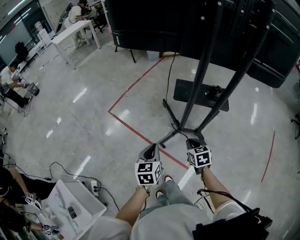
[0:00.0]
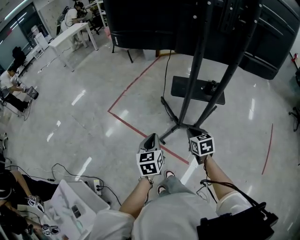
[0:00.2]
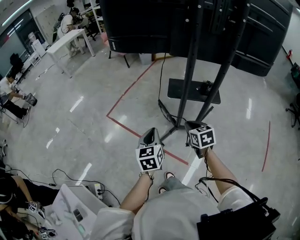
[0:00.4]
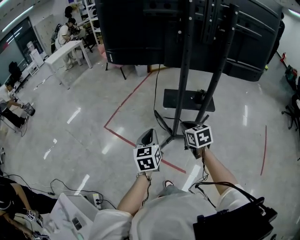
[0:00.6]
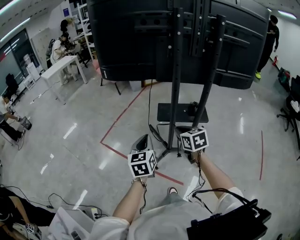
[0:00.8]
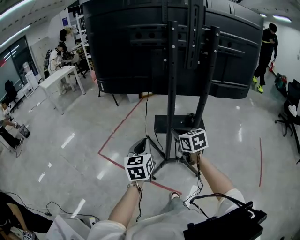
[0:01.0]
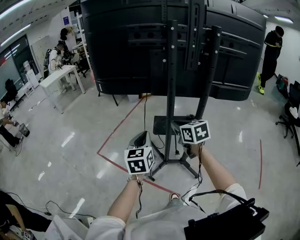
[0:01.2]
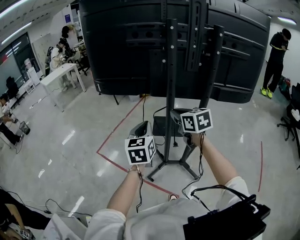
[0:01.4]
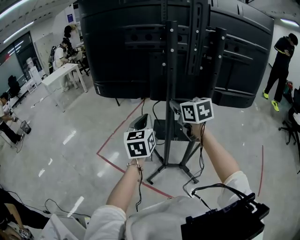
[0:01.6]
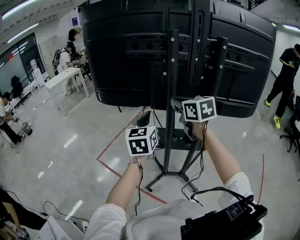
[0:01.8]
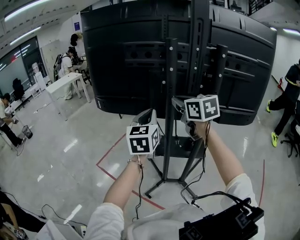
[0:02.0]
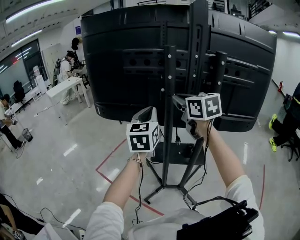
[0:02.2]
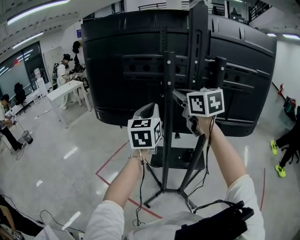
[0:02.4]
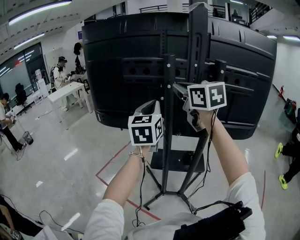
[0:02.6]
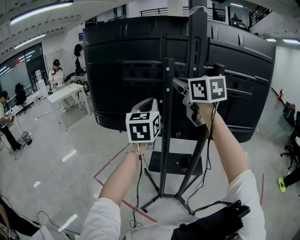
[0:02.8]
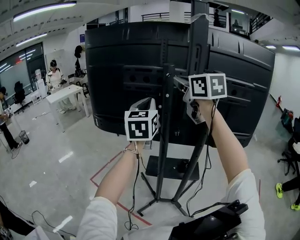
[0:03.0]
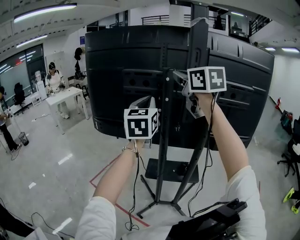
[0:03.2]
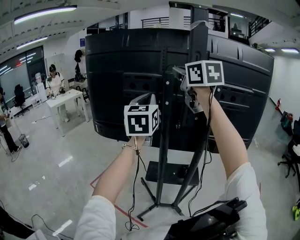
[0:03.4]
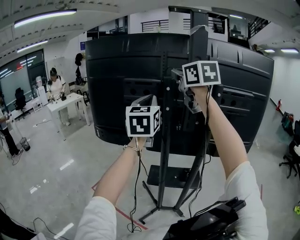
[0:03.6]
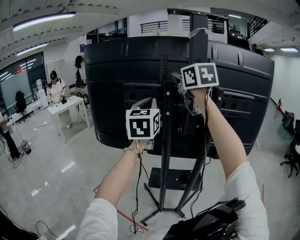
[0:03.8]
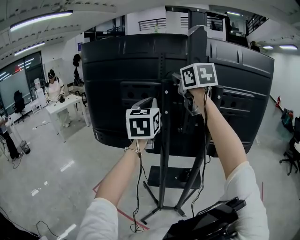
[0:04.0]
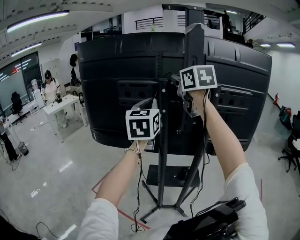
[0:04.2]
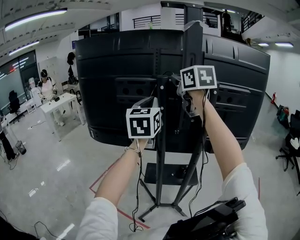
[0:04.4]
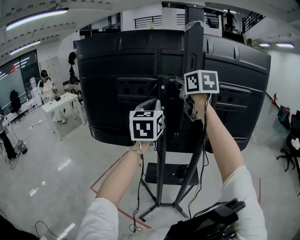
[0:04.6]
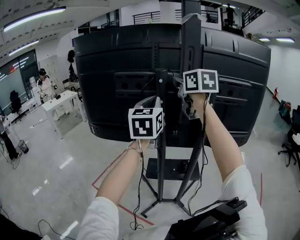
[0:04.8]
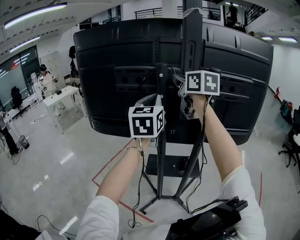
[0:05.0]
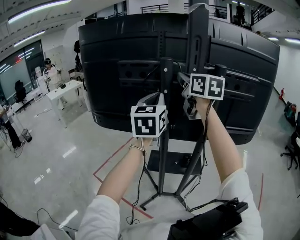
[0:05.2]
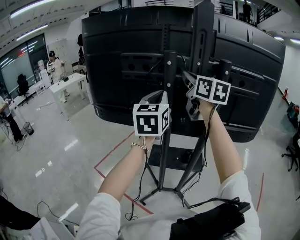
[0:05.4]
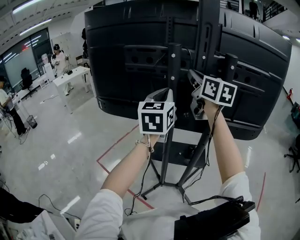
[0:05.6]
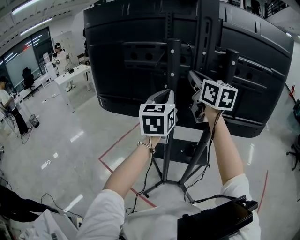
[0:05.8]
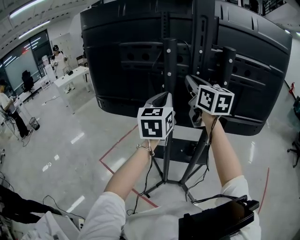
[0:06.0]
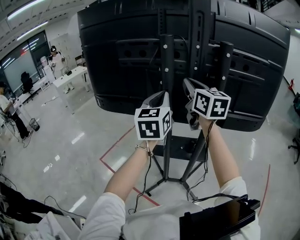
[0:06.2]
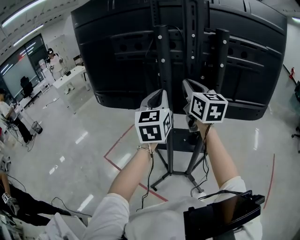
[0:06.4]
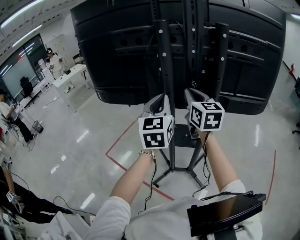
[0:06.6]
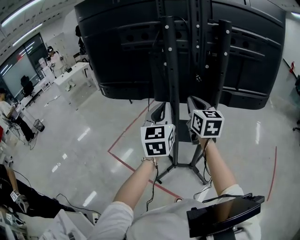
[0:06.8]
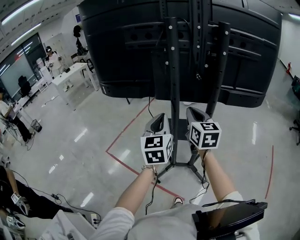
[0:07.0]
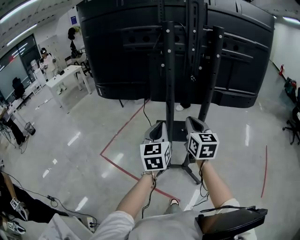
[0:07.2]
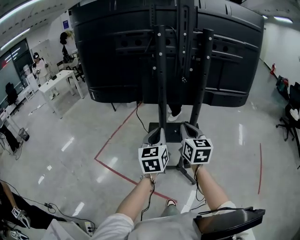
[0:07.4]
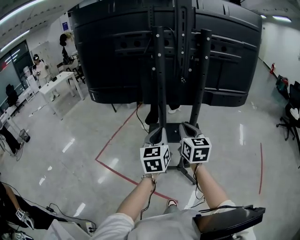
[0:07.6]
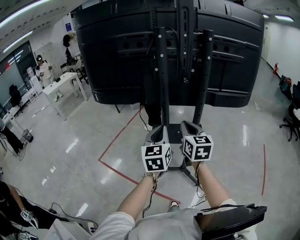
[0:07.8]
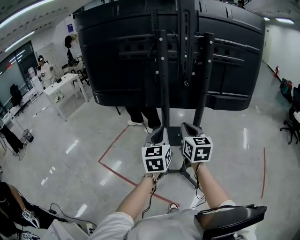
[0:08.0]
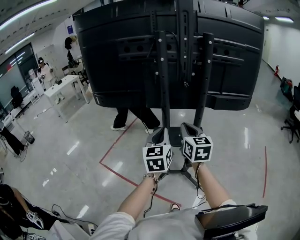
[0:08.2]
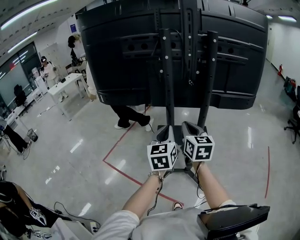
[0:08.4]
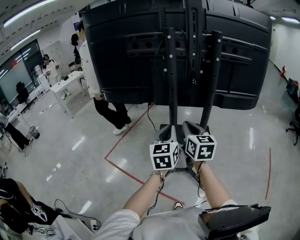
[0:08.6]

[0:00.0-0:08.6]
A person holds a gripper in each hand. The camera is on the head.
0.0 to 1.4 s: The right gripper goes some 35 cm upward and forward, and swivels roughly 20 degrees. Meanwhile the left gripper heads upward, forward and to the right, covering some 30 cm.
1.4 to 2.8 s: The left gripper is displaced upward and forward by approximately 25 cm; the right gripper travels upward by roughly 30 cm, and rotates some 20 degrees.
2.8 to 4.4 s: The left gripper moves upward, roughly 5 cm. The right gripper moves forward and upward, approximately 10 cm.
4.4 to 5.8 s: The grippers both shift downward by about 10 cm.
5.8 to 7.2 s: Both grippers move downward and backward, some 25 cm. The right gripper swivels some 20 degrees.
7.2 to 8.6 s: The grippers stay close to where they were, moving slightly.

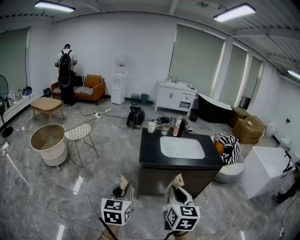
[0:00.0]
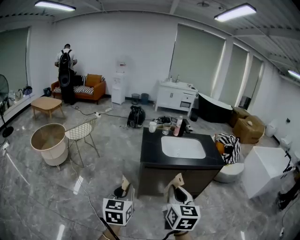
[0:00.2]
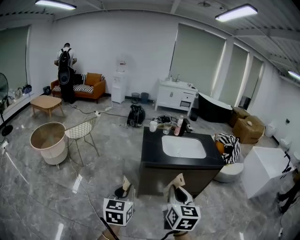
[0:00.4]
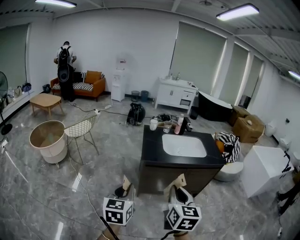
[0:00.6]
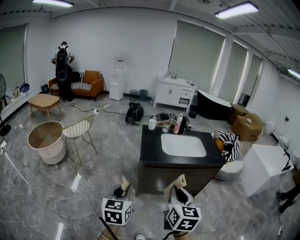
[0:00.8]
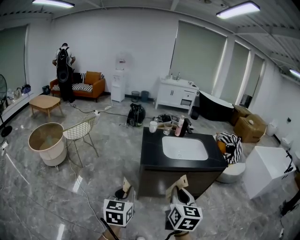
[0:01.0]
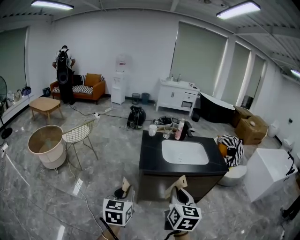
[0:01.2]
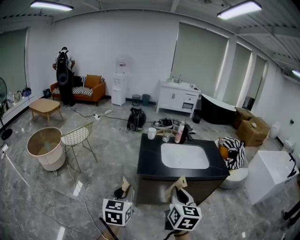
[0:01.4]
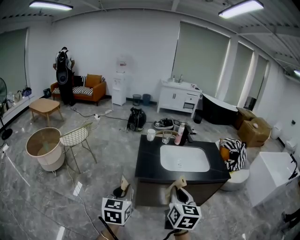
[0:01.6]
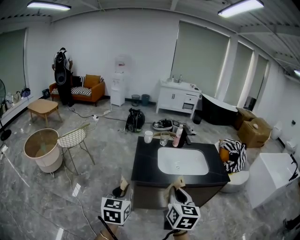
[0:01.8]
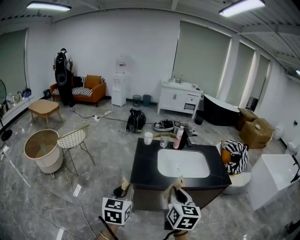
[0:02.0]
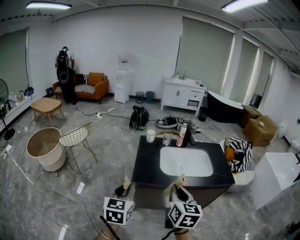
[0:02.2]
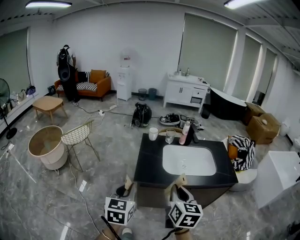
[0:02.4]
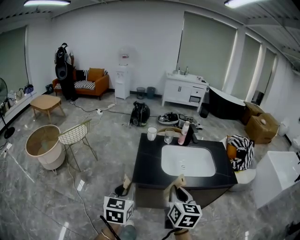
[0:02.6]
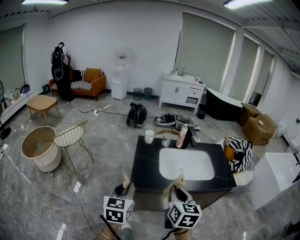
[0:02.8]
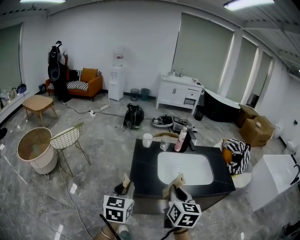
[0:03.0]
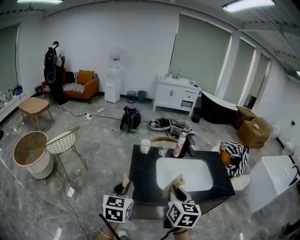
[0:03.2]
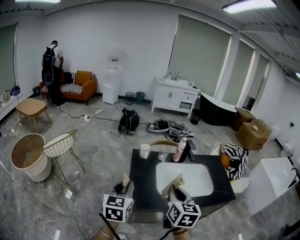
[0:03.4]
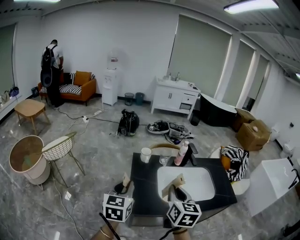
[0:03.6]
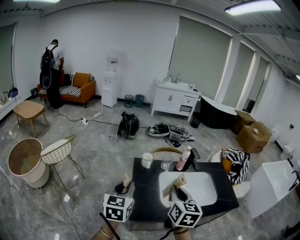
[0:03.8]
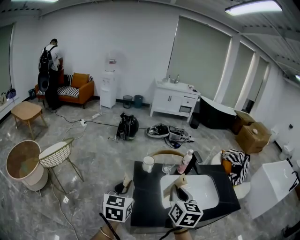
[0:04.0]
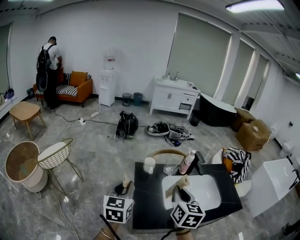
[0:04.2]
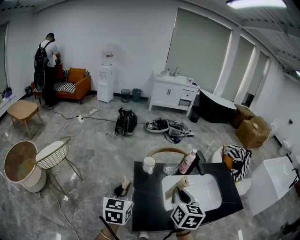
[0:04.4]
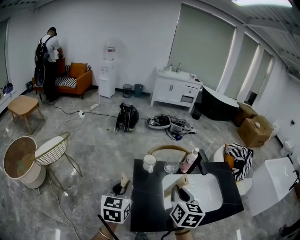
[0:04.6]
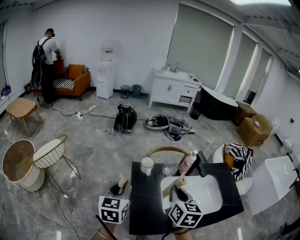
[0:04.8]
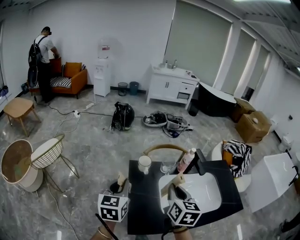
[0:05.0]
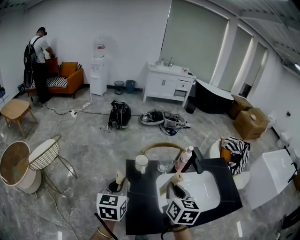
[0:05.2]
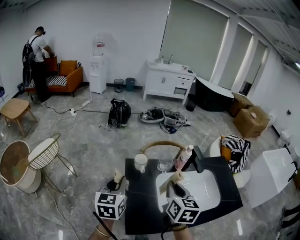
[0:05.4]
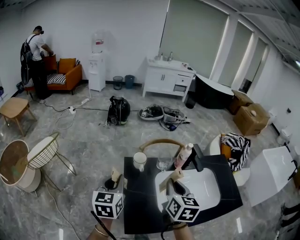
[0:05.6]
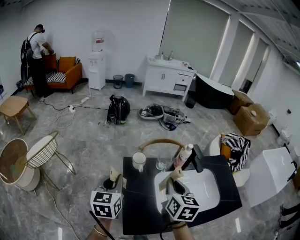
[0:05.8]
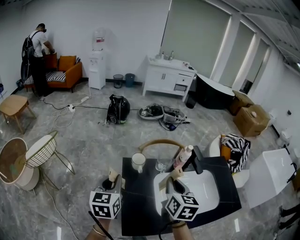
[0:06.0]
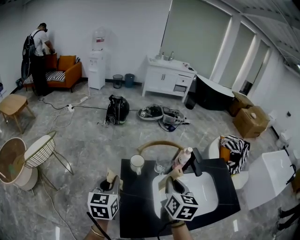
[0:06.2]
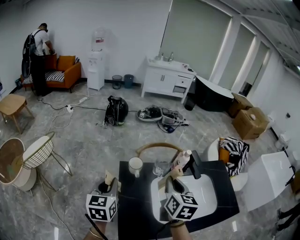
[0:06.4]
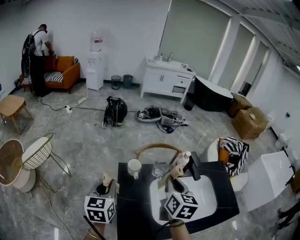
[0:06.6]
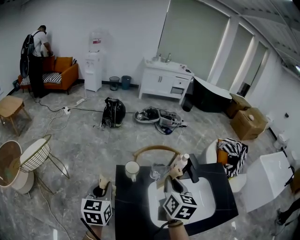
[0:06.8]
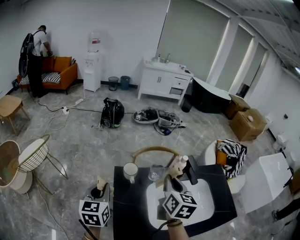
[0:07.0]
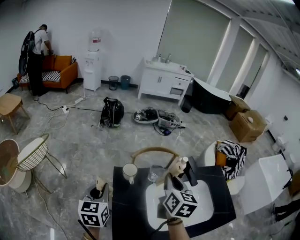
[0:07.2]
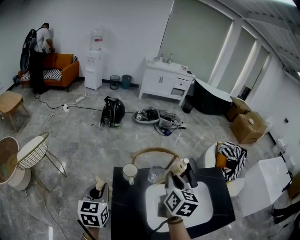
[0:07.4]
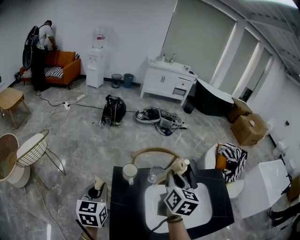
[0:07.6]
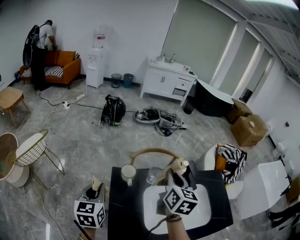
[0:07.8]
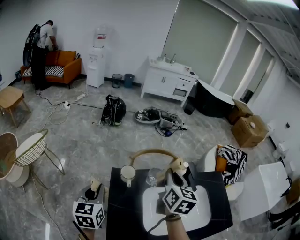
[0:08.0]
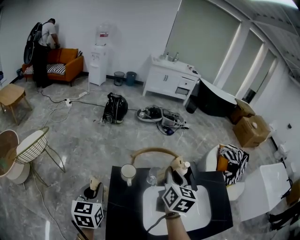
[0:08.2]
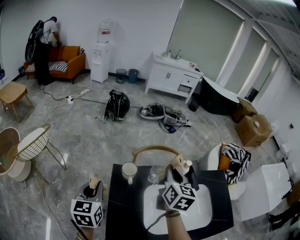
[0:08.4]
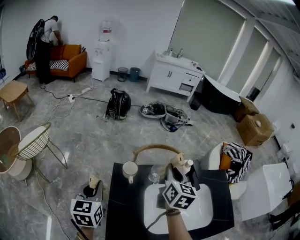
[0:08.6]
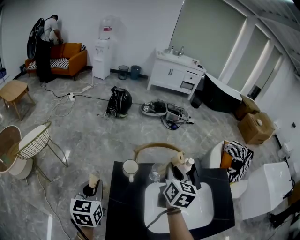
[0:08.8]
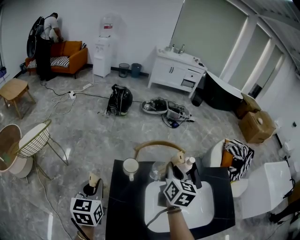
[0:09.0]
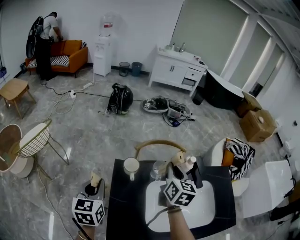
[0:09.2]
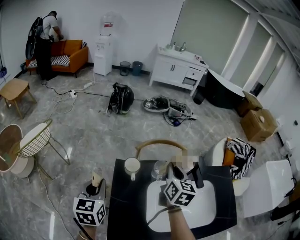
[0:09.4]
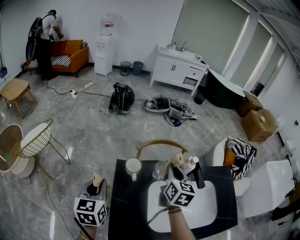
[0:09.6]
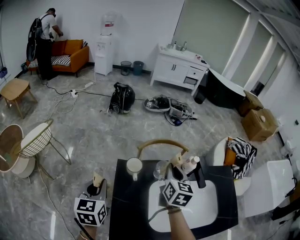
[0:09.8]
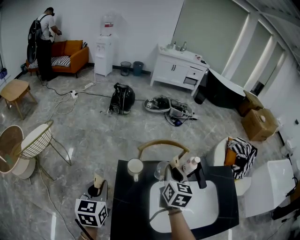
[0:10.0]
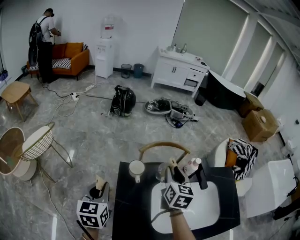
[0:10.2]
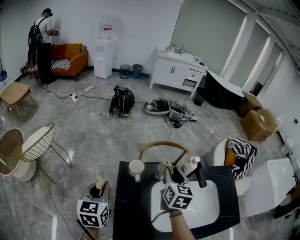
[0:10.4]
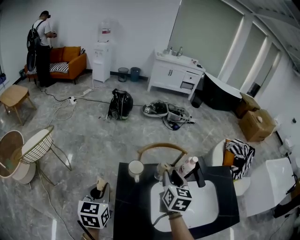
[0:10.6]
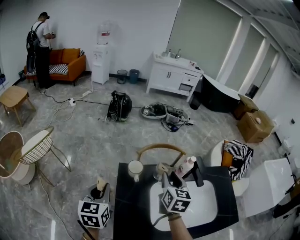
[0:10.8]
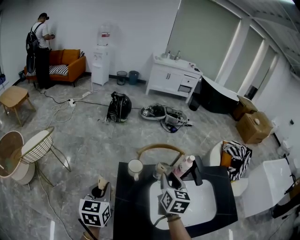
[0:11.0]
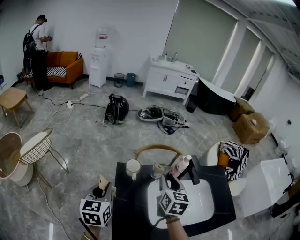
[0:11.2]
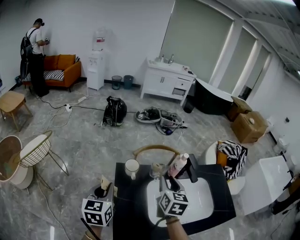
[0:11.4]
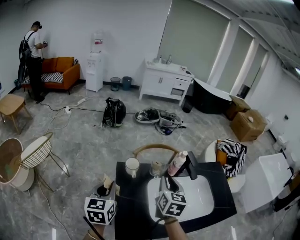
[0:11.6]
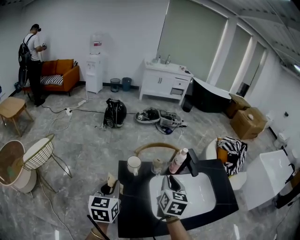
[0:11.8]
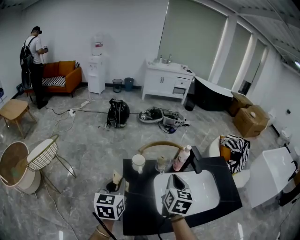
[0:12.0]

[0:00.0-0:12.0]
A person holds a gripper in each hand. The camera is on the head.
0.0 to 1.6 s: Both grippers travel together forward, approximately 15 cm.
1.6 to 3.0 s: Both grippers move forward, some 15 cm.
3.0 to 4.4 s: The two grippers go roughly 20 cm forward.
4.4 to 6.0 s: Both grippers move forward, approximately 10 cm.
6.0 to 7.6 s: The right gripper is displaced forward by roughly 10 cm.
7.6 to 9.0 s: The right gripper moves forward, approximately 5 cm.
9.0 to 10.4 s: The right gripper opens up.
10.4 to 12.0 s: The right gripper heads backward, covering about 15 cm, and closes its fingers. Meanwhile the left gripper ends up approximately 5 cm from where it was.

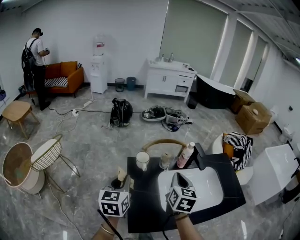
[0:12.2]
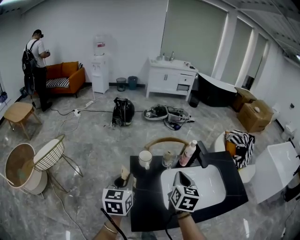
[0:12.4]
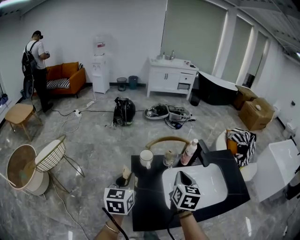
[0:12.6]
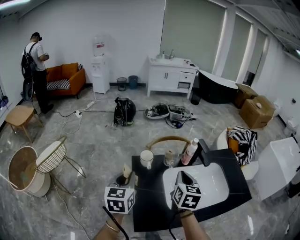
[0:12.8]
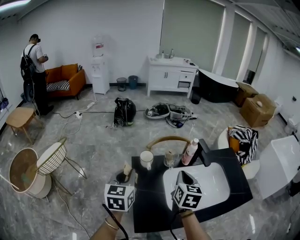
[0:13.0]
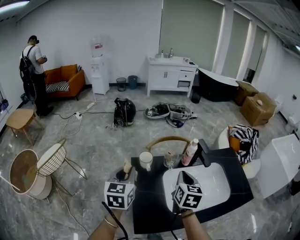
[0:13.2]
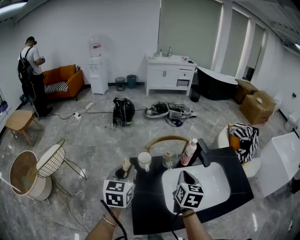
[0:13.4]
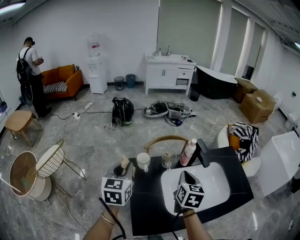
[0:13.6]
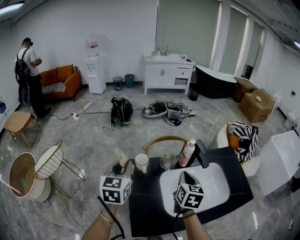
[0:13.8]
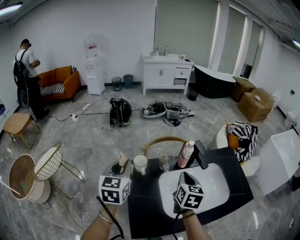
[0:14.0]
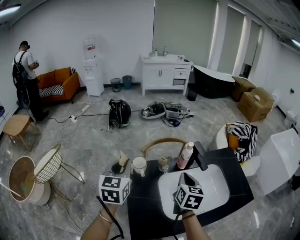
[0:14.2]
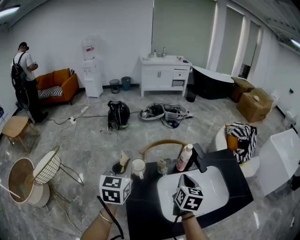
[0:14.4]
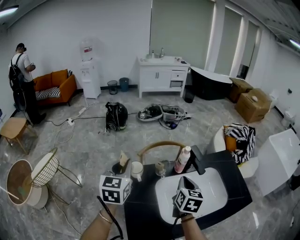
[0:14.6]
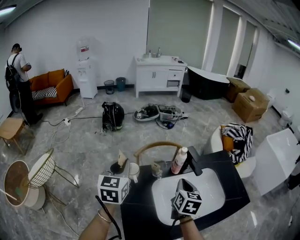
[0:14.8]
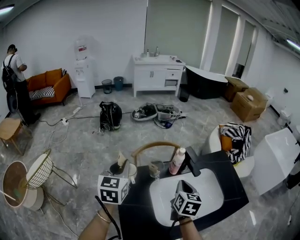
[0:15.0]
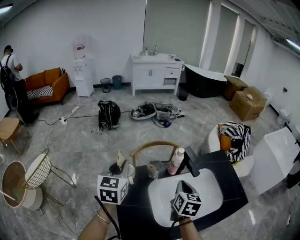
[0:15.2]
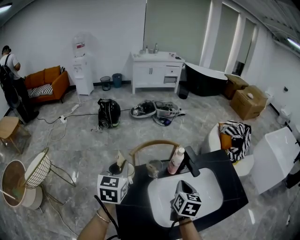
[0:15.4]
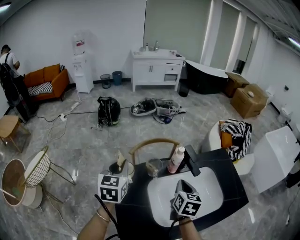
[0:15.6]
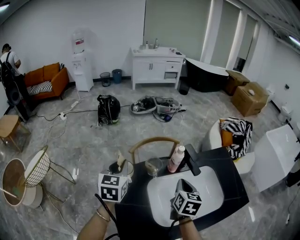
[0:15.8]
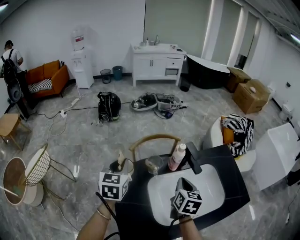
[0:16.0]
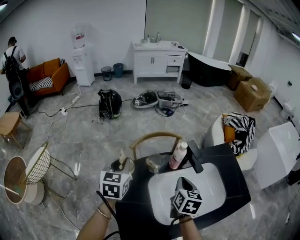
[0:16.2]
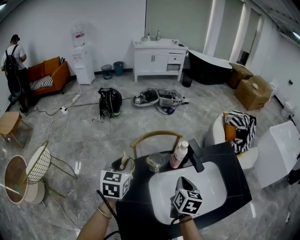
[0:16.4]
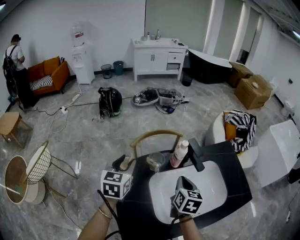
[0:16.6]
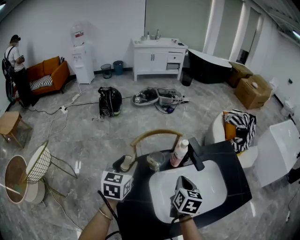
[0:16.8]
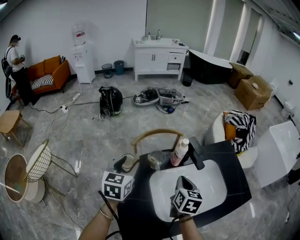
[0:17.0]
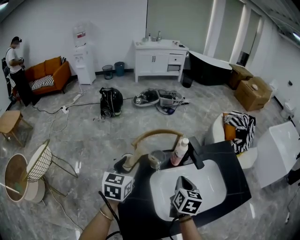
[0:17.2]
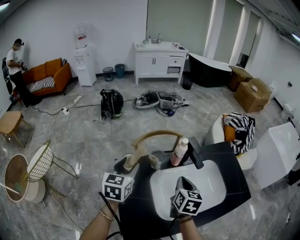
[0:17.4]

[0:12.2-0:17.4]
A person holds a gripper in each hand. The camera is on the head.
12.2 to 14.0 s: The left gripper shifts roughly 10 cm forward, while the right gripper moves some 5 cm.
14.0 to 15.6 s: The right gripper shifts by approximately 5 cm. Meanwhile the left gripper shifts some 10 cm forward.
15.6 to 17.4 s: The left gripper opens up.
